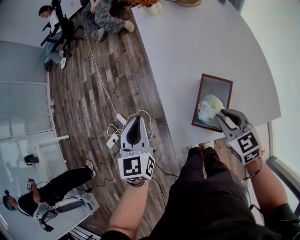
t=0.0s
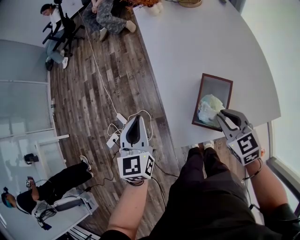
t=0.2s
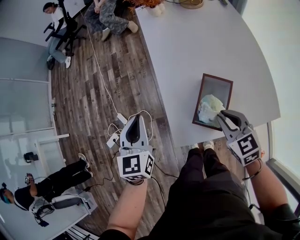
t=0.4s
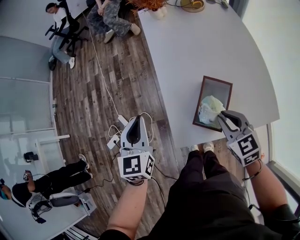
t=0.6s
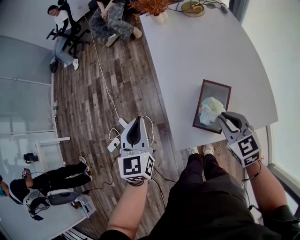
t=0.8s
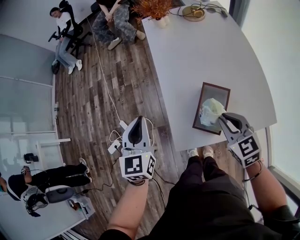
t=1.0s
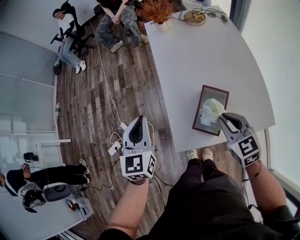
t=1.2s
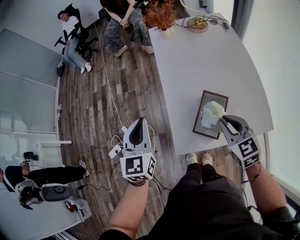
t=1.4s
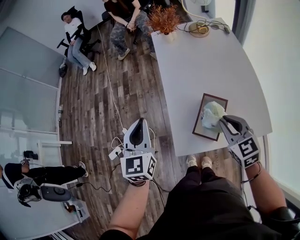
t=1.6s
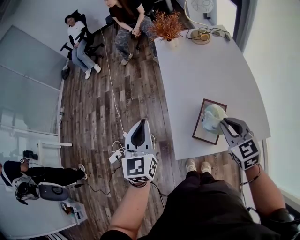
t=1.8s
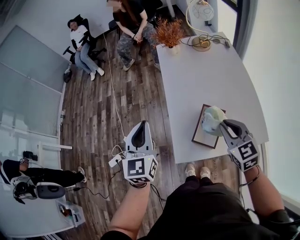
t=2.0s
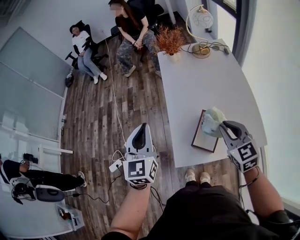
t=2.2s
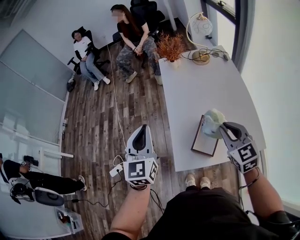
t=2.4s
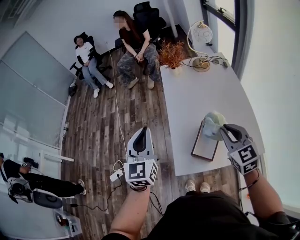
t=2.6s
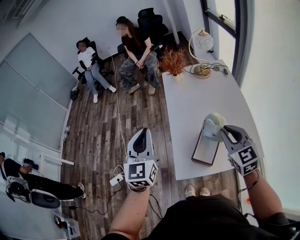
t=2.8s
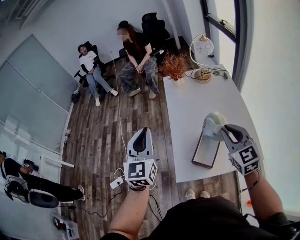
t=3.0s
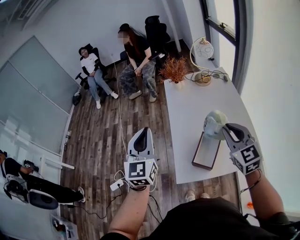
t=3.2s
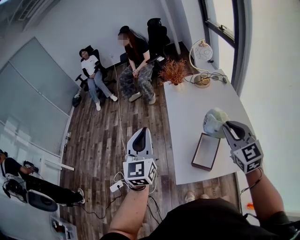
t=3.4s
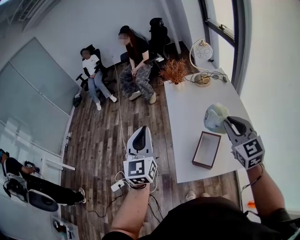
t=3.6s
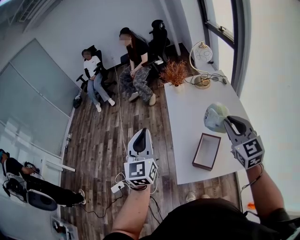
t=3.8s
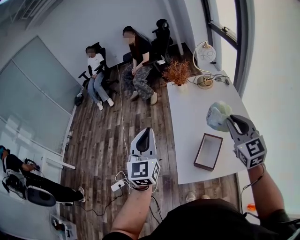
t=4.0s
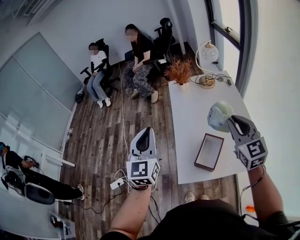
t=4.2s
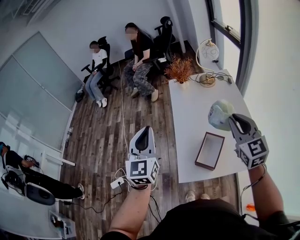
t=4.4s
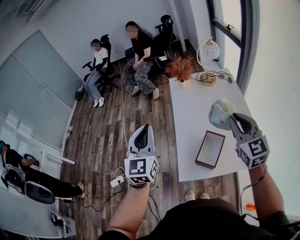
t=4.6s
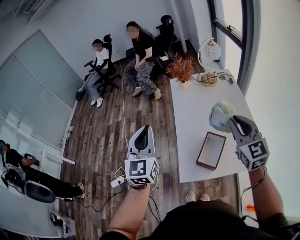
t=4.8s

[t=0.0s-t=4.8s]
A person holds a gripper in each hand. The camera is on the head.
t=0.0s to t=1.6s: The grippers both shift upward by roughly 10 cm.
t=1.6s to t=3.2s: Both grippers travel together upward, about 15 cm.
t=3.2s to t=4.8s: The grippers stay close to where they were, moving slightly.

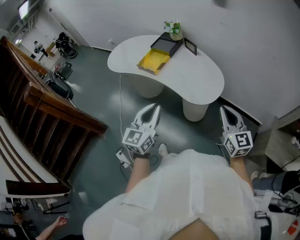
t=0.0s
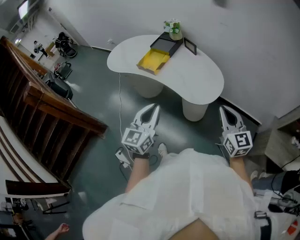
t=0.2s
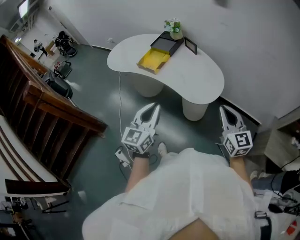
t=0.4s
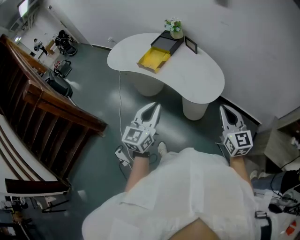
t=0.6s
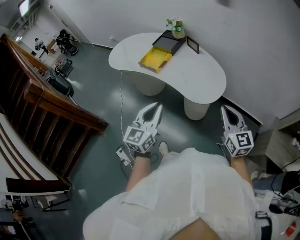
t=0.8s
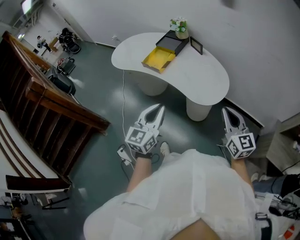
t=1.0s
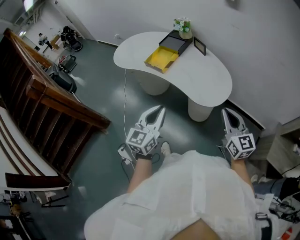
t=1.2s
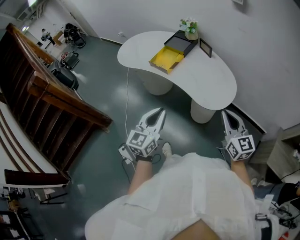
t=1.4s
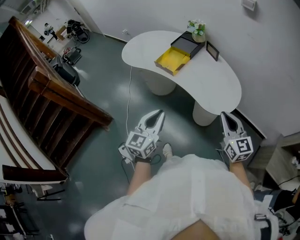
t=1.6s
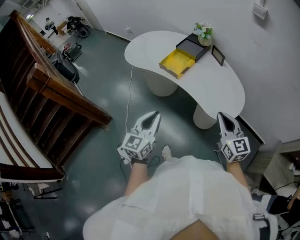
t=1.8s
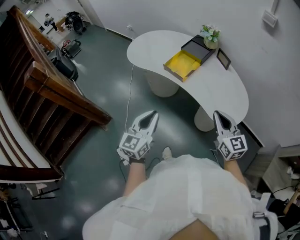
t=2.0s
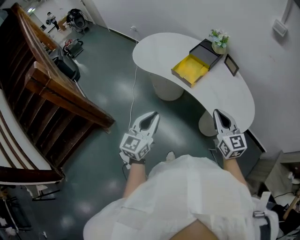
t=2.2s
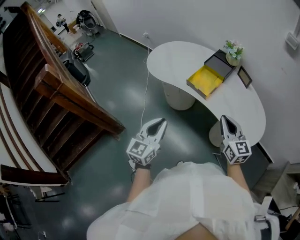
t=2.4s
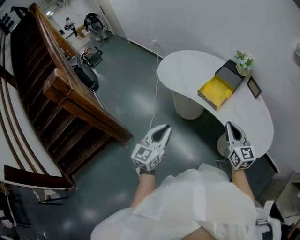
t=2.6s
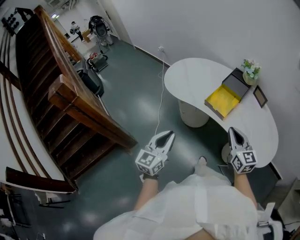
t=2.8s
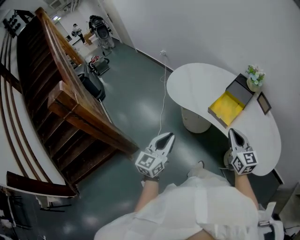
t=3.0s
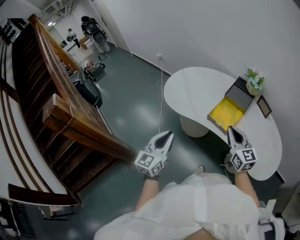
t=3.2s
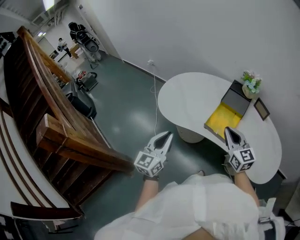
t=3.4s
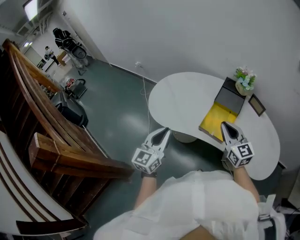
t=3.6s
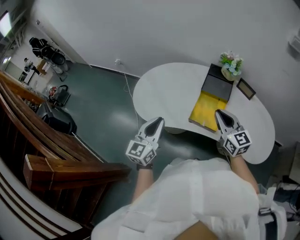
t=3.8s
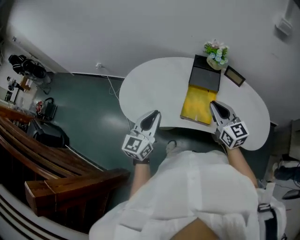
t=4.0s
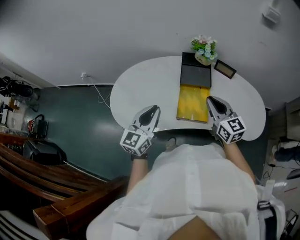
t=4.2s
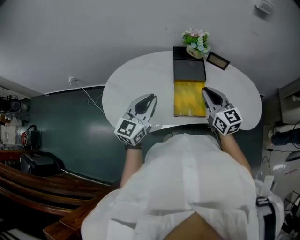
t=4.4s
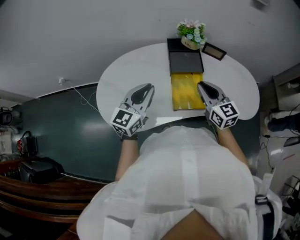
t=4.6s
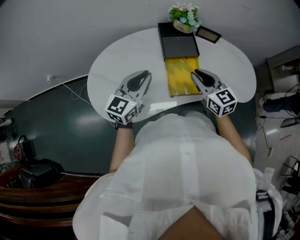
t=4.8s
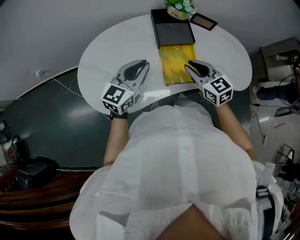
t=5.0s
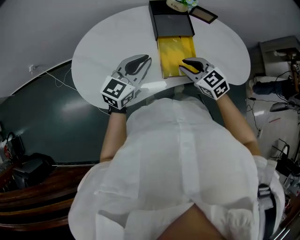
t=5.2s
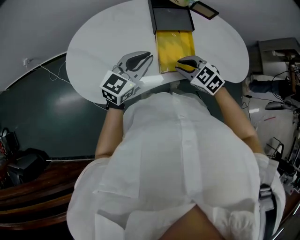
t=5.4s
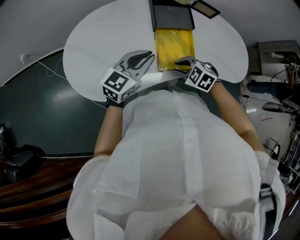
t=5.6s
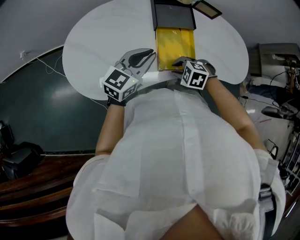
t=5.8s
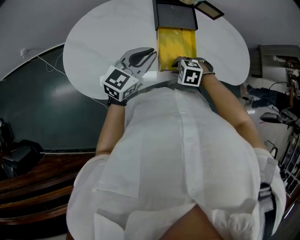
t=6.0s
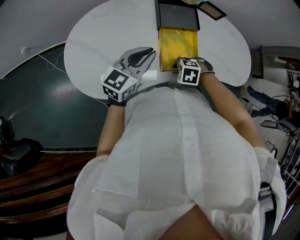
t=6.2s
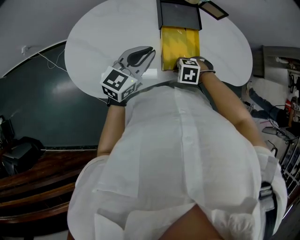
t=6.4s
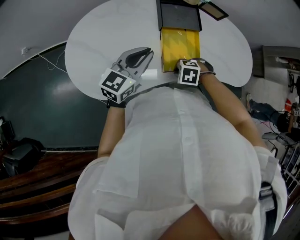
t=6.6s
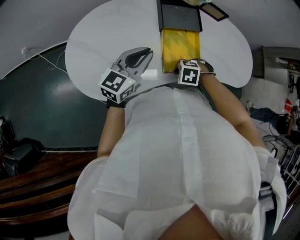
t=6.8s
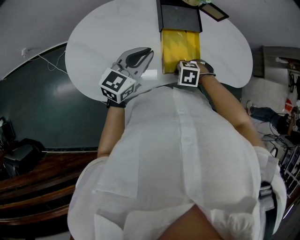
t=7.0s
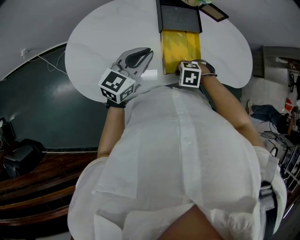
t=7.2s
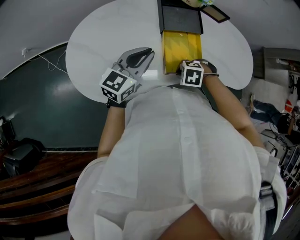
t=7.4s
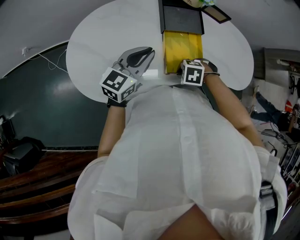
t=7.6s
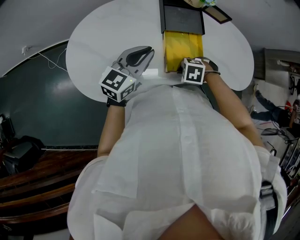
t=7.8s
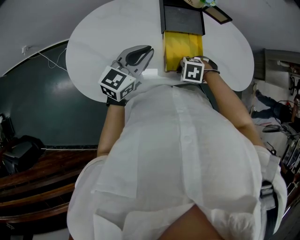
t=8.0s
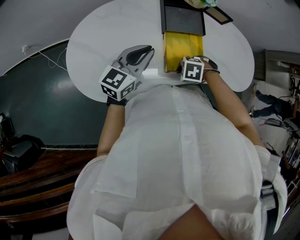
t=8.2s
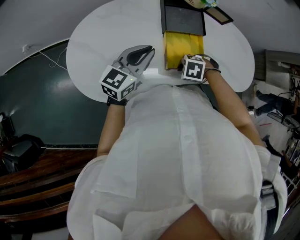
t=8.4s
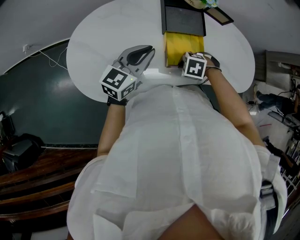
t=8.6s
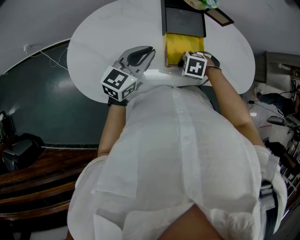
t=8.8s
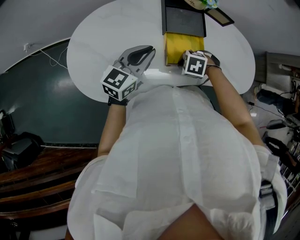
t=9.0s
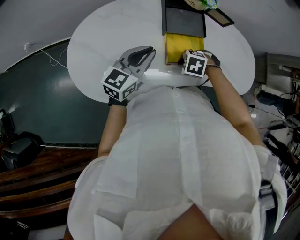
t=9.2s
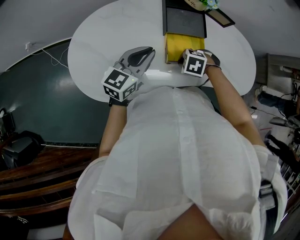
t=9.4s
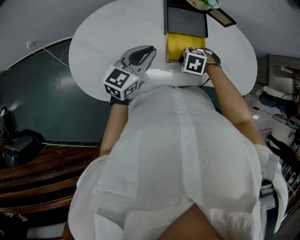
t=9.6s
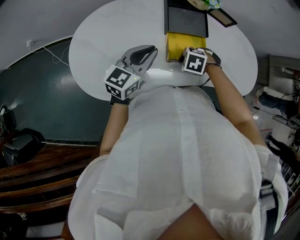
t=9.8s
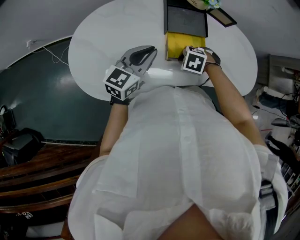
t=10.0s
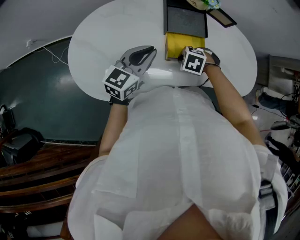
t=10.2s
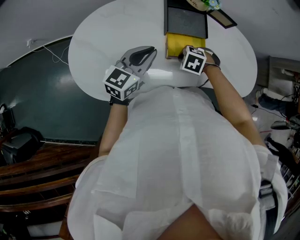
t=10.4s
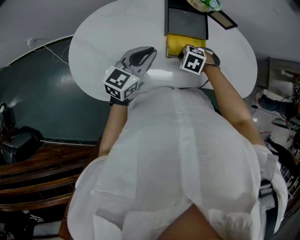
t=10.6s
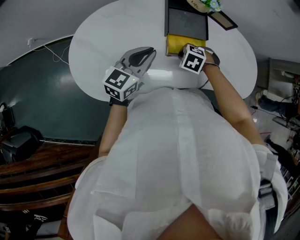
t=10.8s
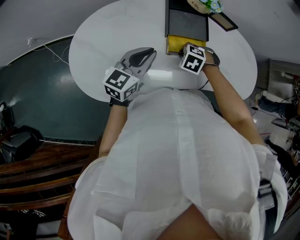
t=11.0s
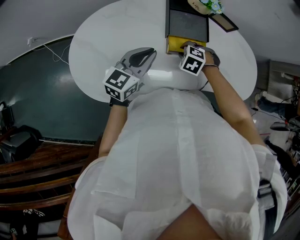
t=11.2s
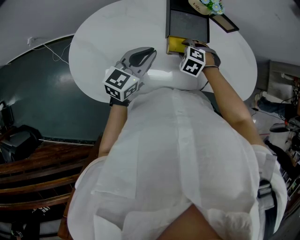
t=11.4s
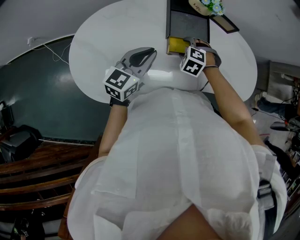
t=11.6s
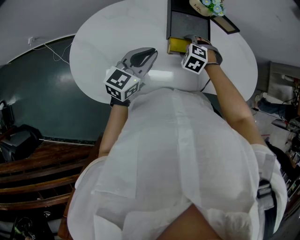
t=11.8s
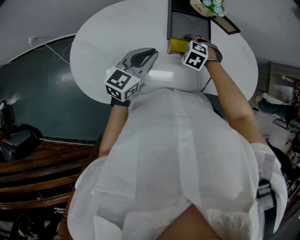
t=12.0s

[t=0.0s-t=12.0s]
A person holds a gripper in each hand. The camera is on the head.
t=0.0s to t=1.6s: The left gripper shifts about 10 cm to the left. Meanwhile the right gripper heads to the left and forward, covering approximately 10 cm.
t=1.6s to t=3.0s: The grippers both shift to the left and forward by roughly 40 cm.
t=3.0s to t=4.4s: The right gripper moves approximately 25 cm, and swivels about 30 degrees. The left gripper changes place by approximately 40 cm, and changes its angle by roughly 50 degrees.
t=4.4s to t=6.0s: The left gripper is displaced downward by about 10 cm, and rotates approximately 20 degrees. The right gripper goes about 25 cm downward, and points its fingers about 70 degrees further downward.
t=6.0s to t=7.6s: There are only small adjustments of the grippers.
t=7.6s to t=9.0s: The right gripper moves approximately 5 cm.
t=9.0s to t=10.4s: The grippers move only a little.
t=10.4s to t=12.0s: The right gripper shifts by about 10 cm, and opens up.

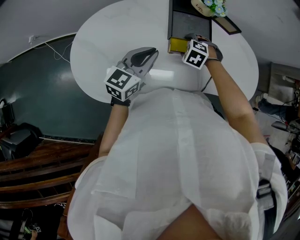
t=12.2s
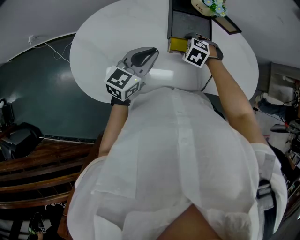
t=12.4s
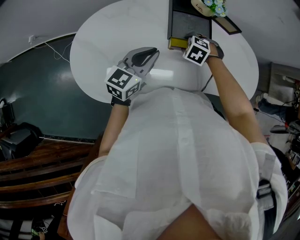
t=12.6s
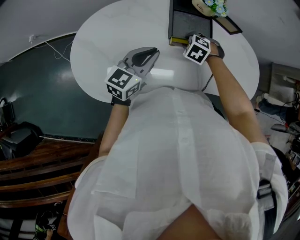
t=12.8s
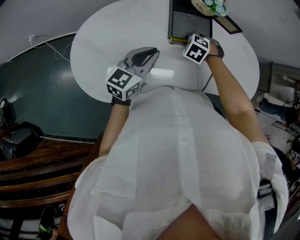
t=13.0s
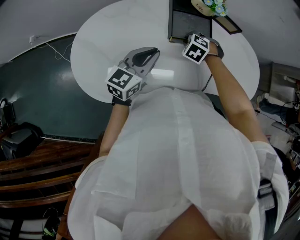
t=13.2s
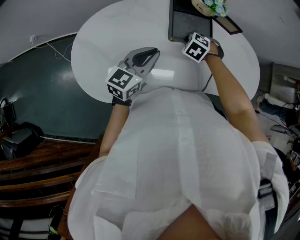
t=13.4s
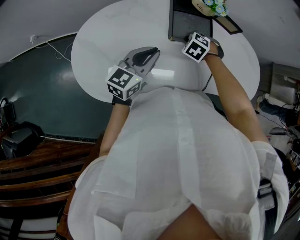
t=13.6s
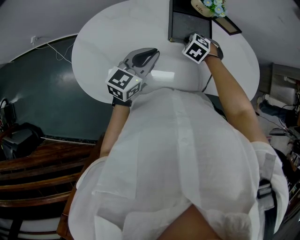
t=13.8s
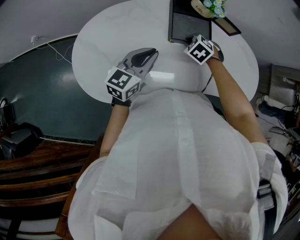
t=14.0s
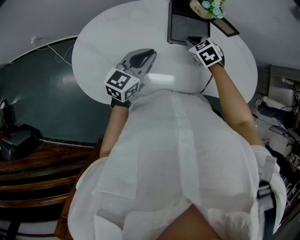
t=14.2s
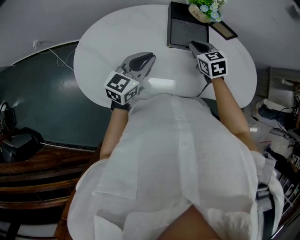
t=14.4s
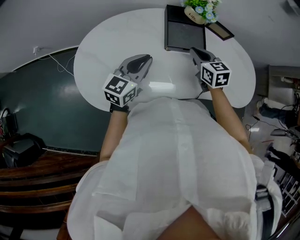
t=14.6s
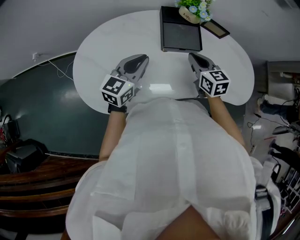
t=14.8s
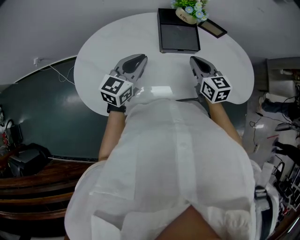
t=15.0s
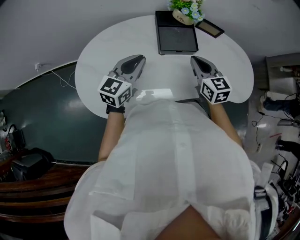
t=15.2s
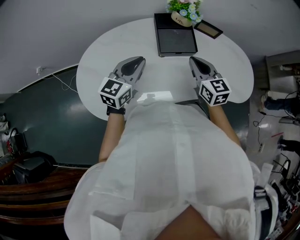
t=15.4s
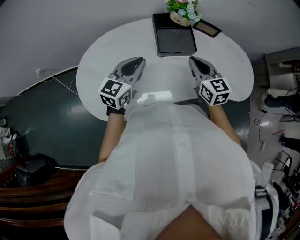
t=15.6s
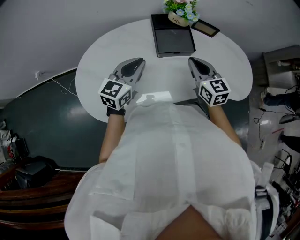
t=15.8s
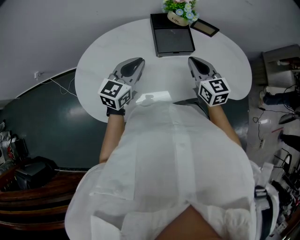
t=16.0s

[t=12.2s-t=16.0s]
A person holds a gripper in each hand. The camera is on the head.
t=12.2s to t=13.4s: The right gripper closes.
t=13.4s to t=14.8s: The right gripper travels upward and backward by about 15 cm, and tips its fingers upward by roughly 40 degrees.
t=14.8s to t=16.0s: The right gripper shifts by roughly 5 cm.

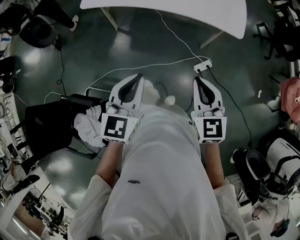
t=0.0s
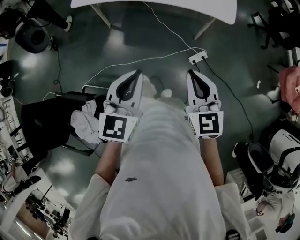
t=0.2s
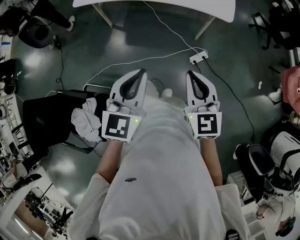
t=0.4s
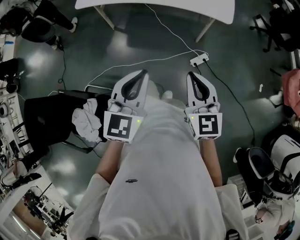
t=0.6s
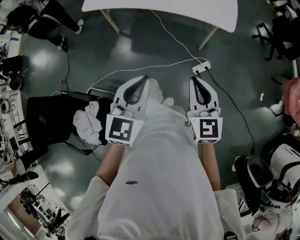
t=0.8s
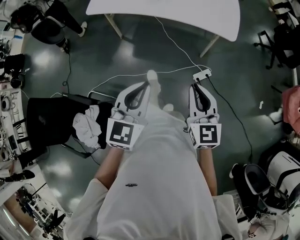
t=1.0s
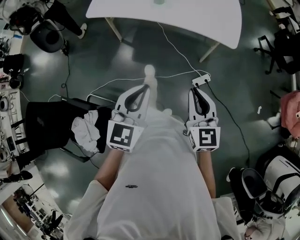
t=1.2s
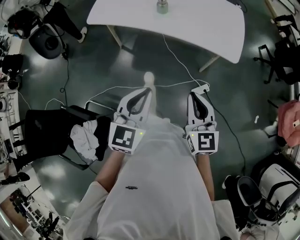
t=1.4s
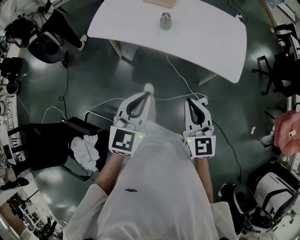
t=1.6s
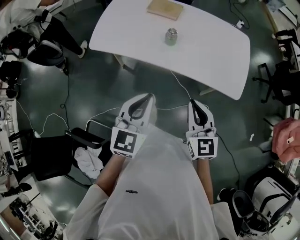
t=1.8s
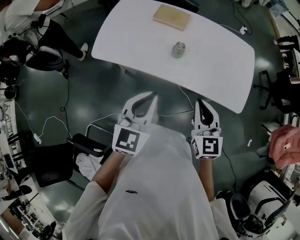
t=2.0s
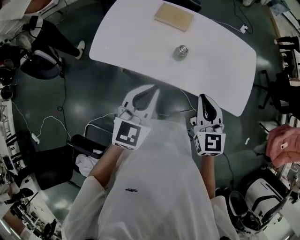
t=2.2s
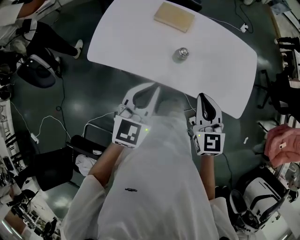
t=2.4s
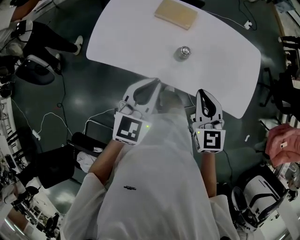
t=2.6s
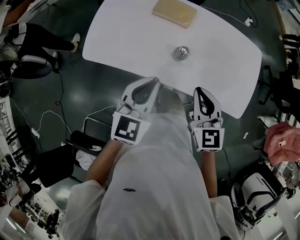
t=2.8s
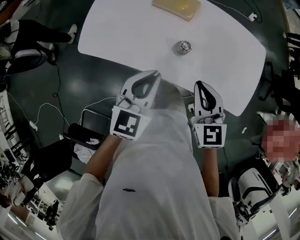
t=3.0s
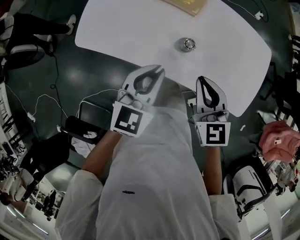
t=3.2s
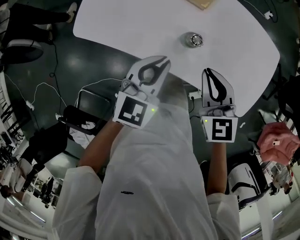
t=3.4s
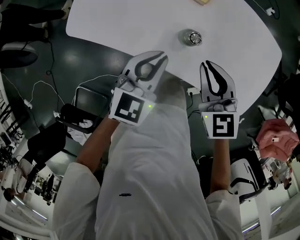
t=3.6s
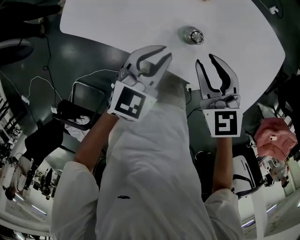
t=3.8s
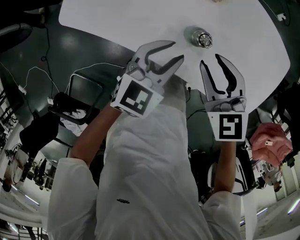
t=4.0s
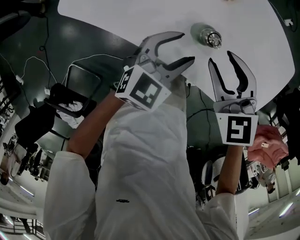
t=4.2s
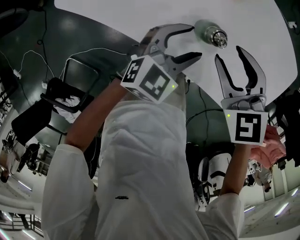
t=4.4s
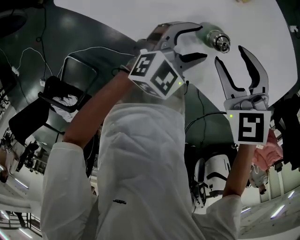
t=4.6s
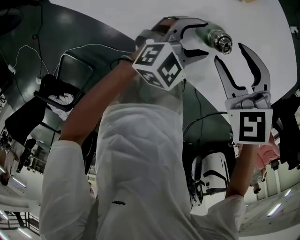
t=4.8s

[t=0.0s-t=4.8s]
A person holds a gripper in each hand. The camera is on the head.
t=0.0s to t=1.6s: The left gripper travels forward and to the right by some 15 cm. The right gripper heads forward, covering roughly 15 cm.
t=1.6s to t=3.2s: The grippers both shift forward by approximately 35 cm.
t=3.2s to t=4.8s: The right gripper heads downward and forward, covering about 15 cm, changes its angle by approximately 40 degrees, and opens up, while the left gripper heads downward, to the right and forward, covering some 25 cm, rotates about 20 degrees, and opens its fingers.
